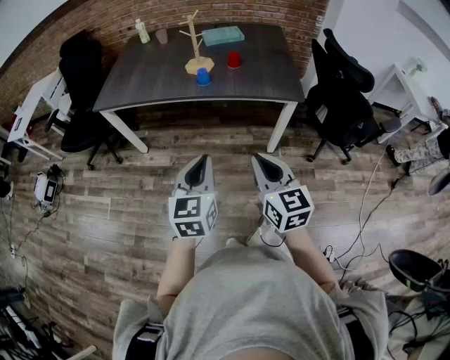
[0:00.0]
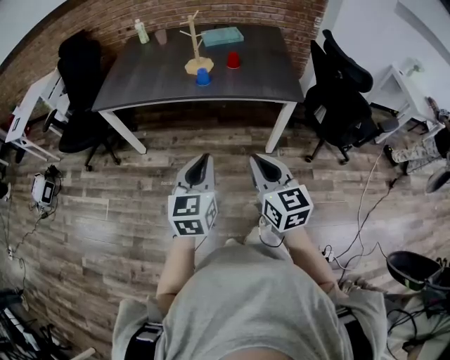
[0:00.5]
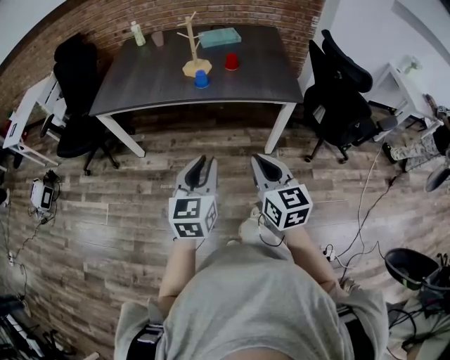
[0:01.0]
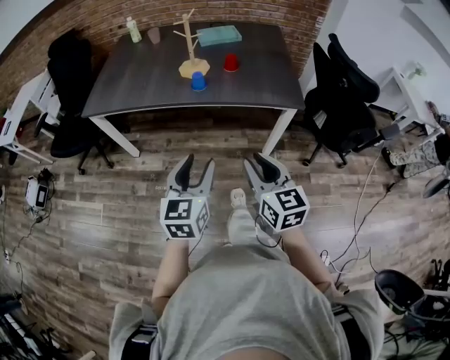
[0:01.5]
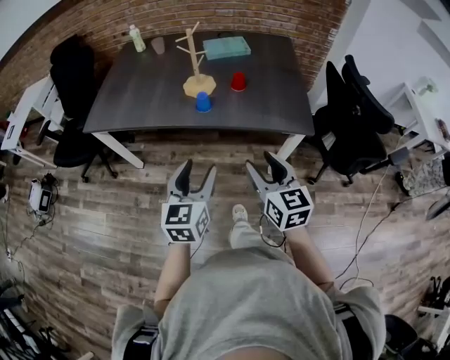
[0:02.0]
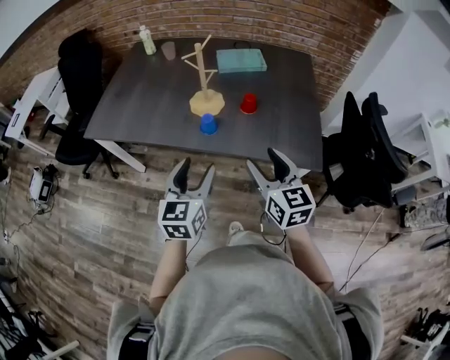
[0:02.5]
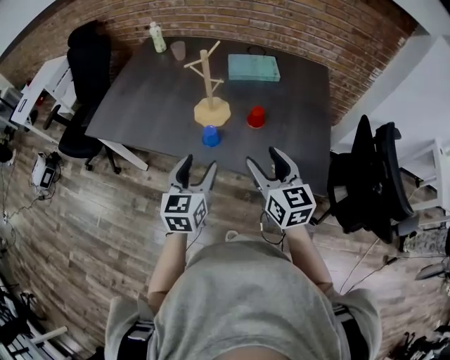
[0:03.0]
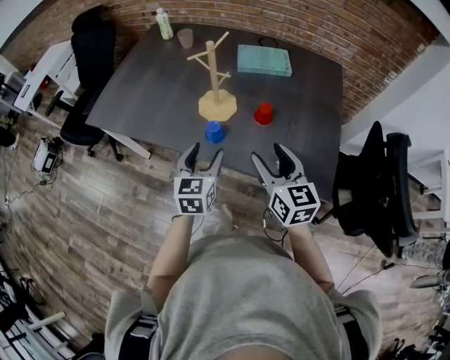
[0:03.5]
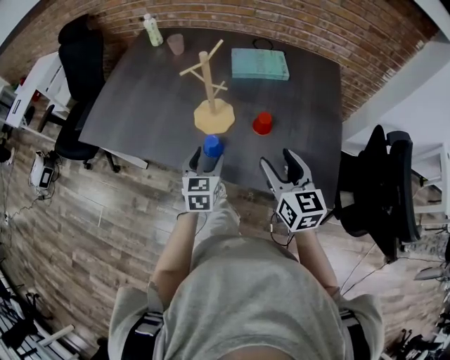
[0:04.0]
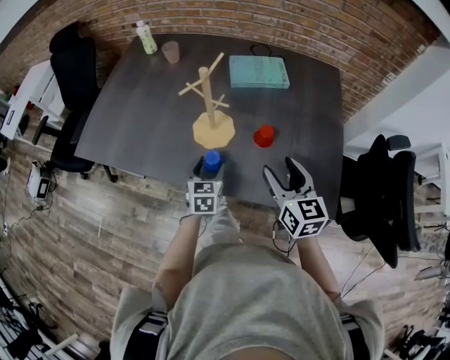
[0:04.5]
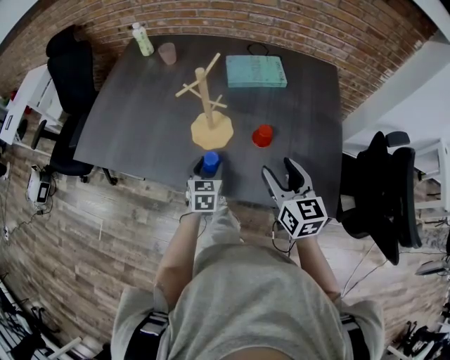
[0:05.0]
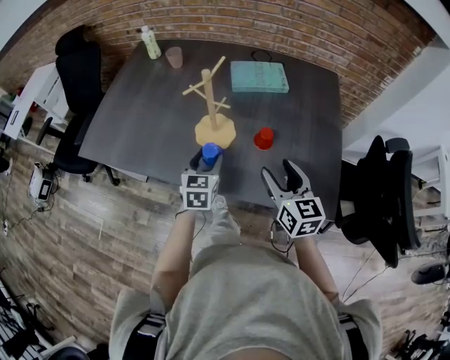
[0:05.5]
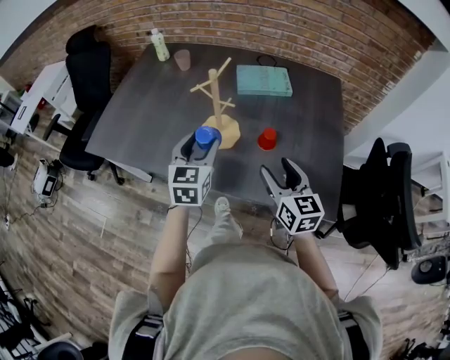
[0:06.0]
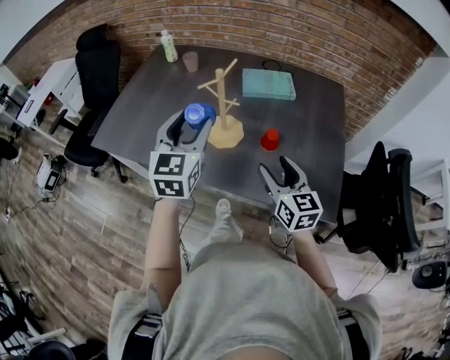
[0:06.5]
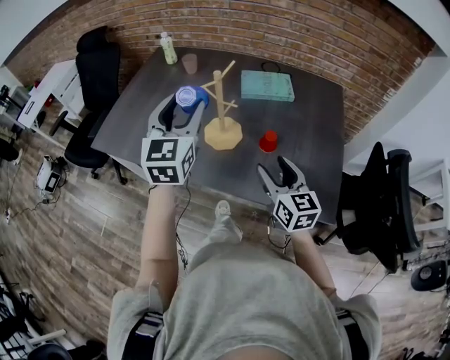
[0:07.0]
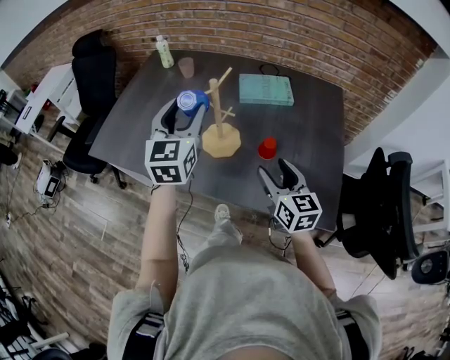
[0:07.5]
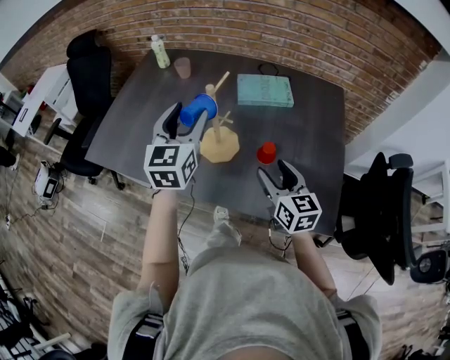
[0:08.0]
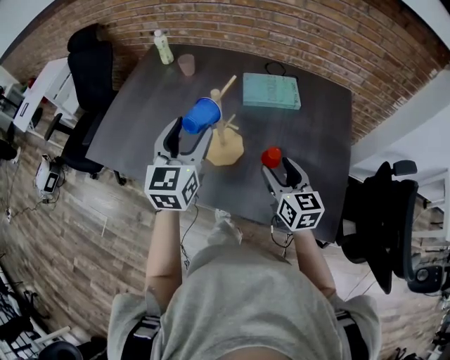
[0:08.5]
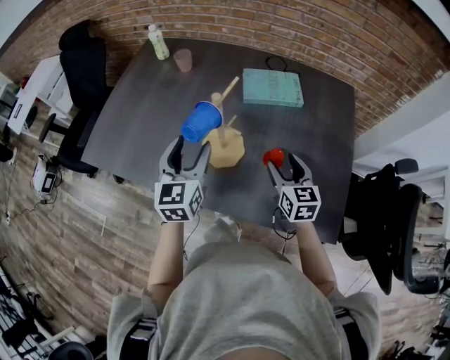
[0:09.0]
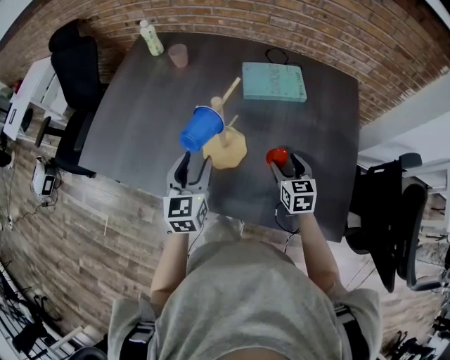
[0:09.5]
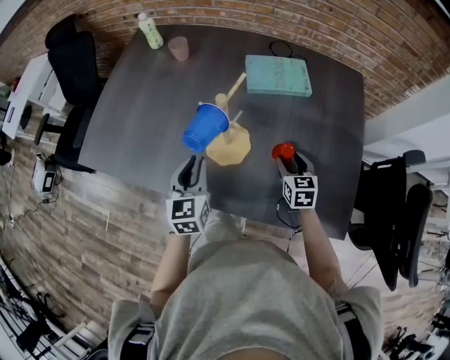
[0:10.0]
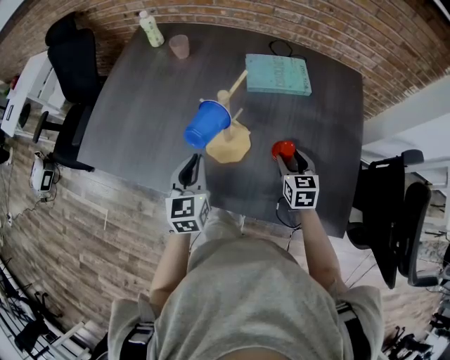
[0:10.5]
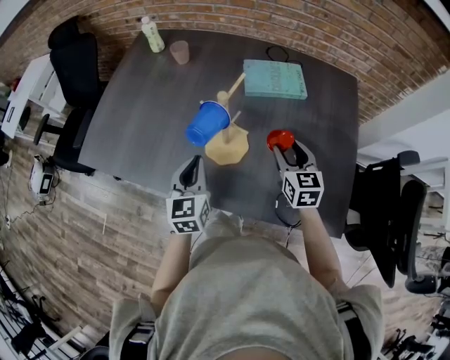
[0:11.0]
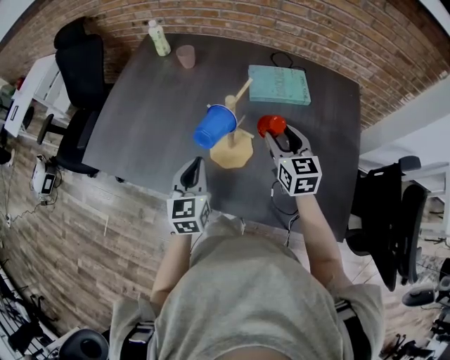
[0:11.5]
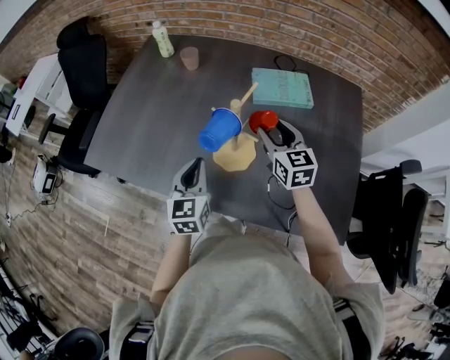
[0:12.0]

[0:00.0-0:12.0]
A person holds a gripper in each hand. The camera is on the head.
0:00.0 to 0:02.0: The grippers both shift forward by approximately 20 cm. The right gripper opens, while the left gripper opens up.
0:02.0 to 0:04.0: The right gripper moves forward, some 30 cm; the left gripper heads forward and downward, covering some 35 cm.
0:04.0 to 0:06.0: The left gripper travels upward by about 10 cm.
0:06.0 to 0:08.0: The left gripper heads upward and forward, covering roughly 15 cm.
0:08.0 to 0:10.0: The left gripper goes about 20 cm downward, and closes its fingers. The right gripper is displaced downward and forward by about 20 cm, and swivels about 30 degrees.
0:10.0 to 0:12.0: The right gripper is displaced upward, to the left and forward by about 20 cm, and swivels about 20 degrees.

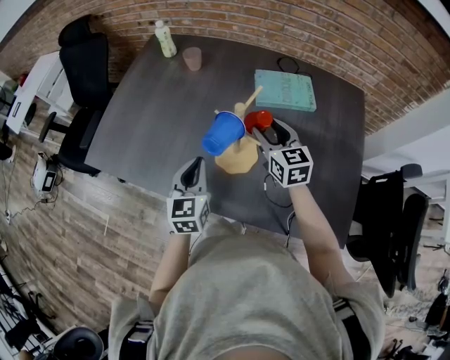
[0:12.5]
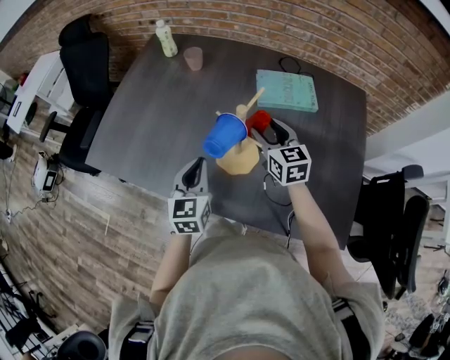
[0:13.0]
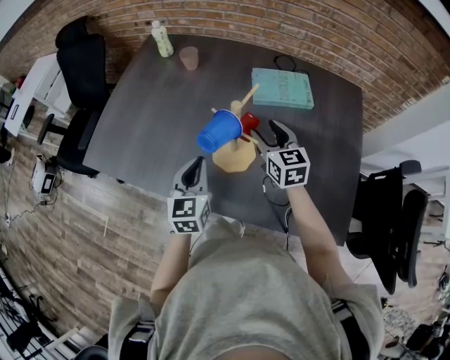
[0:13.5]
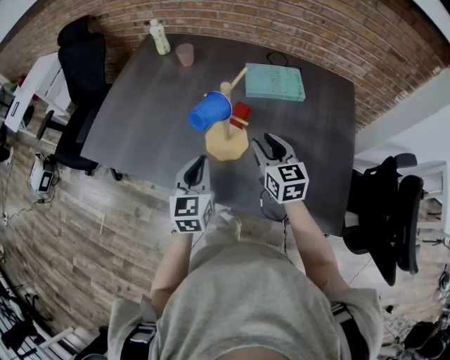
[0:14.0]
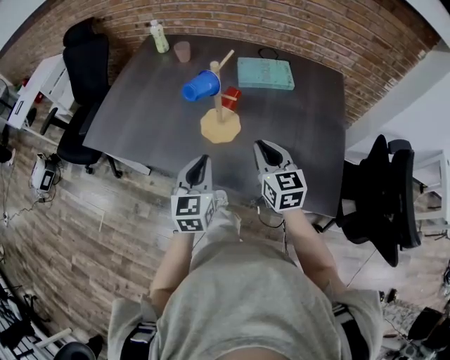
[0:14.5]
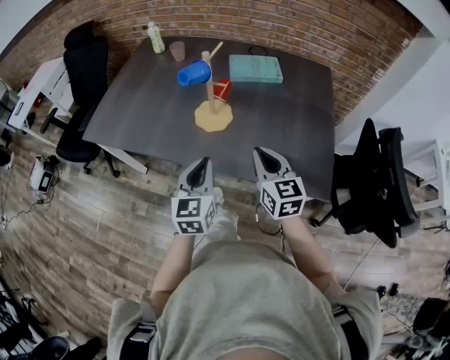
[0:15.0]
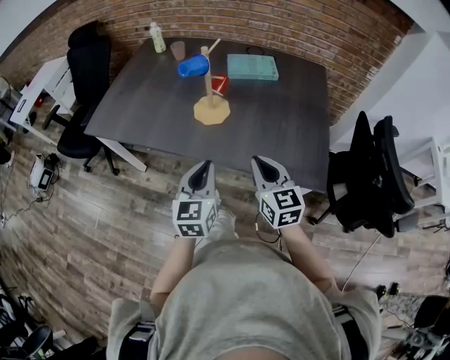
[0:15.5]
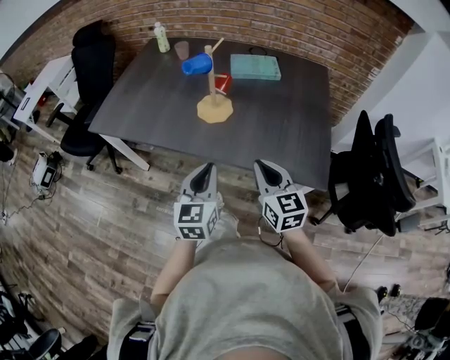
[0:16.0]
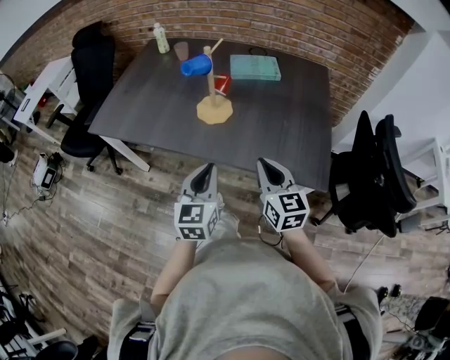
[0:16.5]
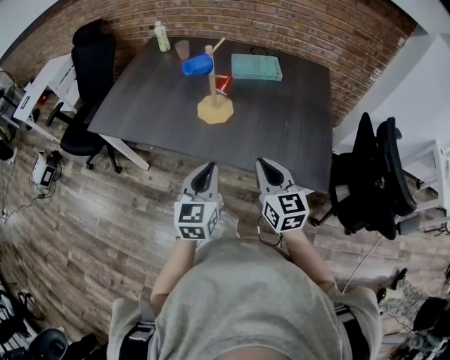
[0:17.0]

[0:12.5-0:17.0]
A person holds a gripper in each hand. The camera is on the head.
0:12.5 to 0:14.5: The two grippers go some 15 cm backward. The right gripper closes.
0:14.5 to 0:17.0: Both grippers travel together backward, roughly 15 cm.

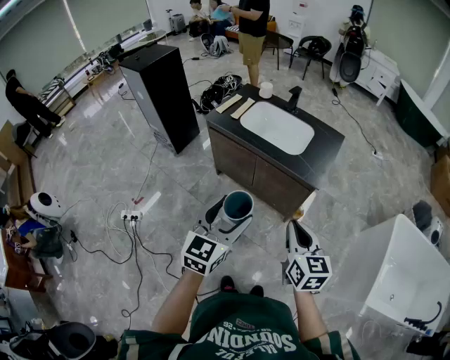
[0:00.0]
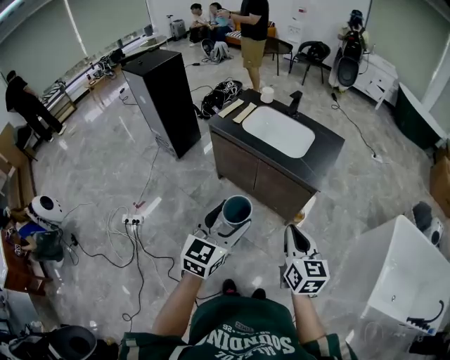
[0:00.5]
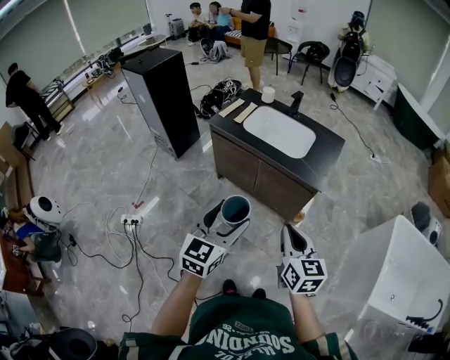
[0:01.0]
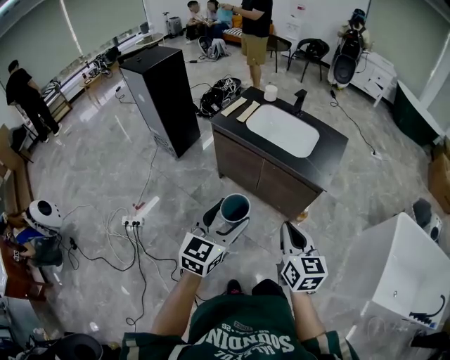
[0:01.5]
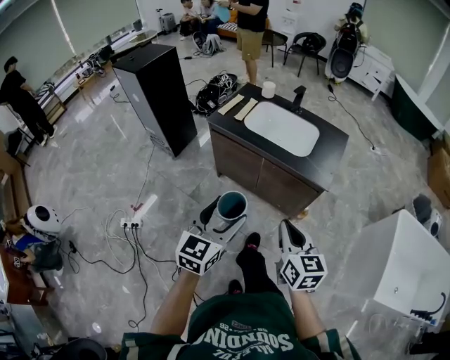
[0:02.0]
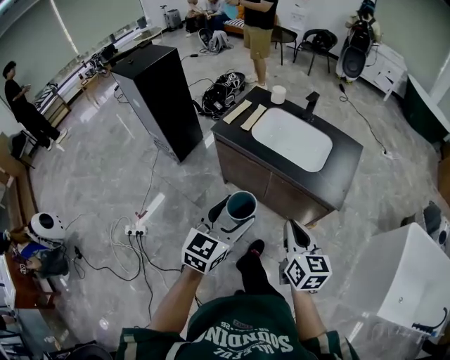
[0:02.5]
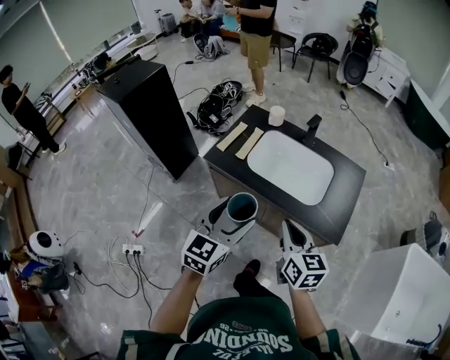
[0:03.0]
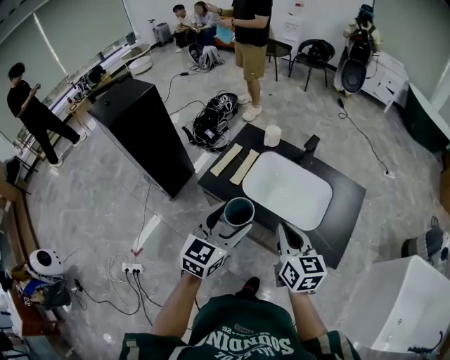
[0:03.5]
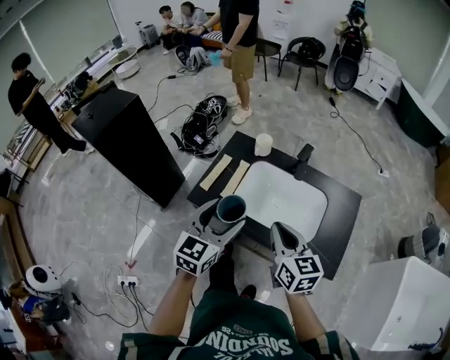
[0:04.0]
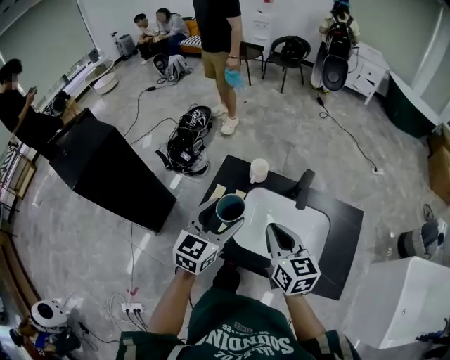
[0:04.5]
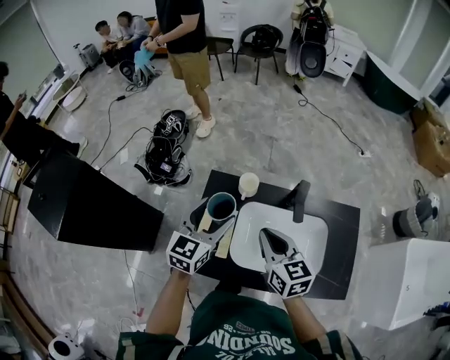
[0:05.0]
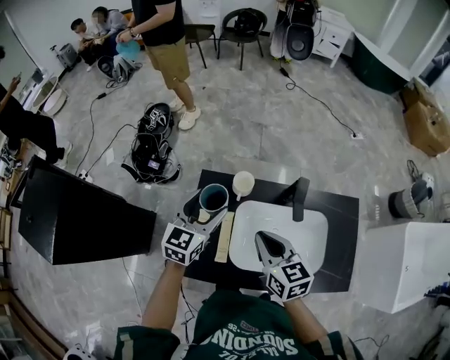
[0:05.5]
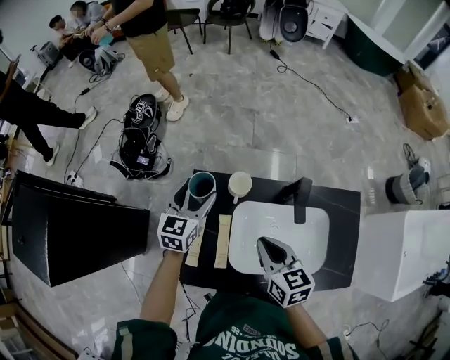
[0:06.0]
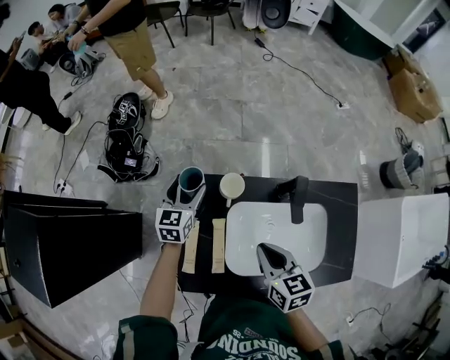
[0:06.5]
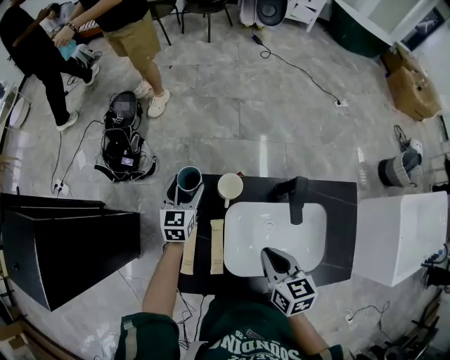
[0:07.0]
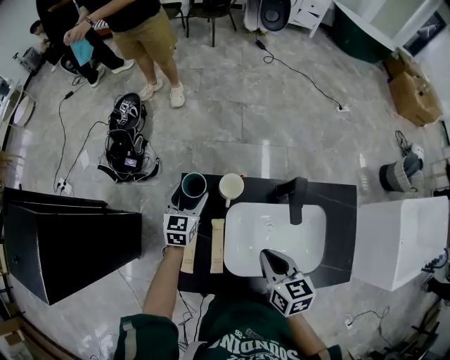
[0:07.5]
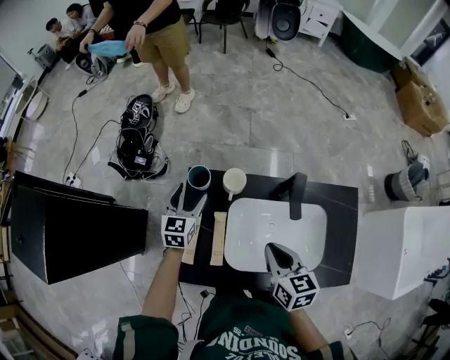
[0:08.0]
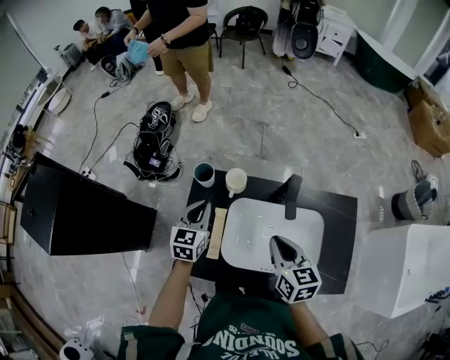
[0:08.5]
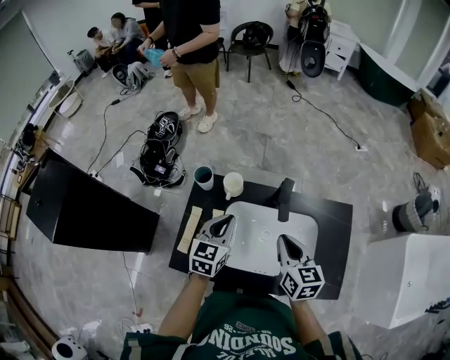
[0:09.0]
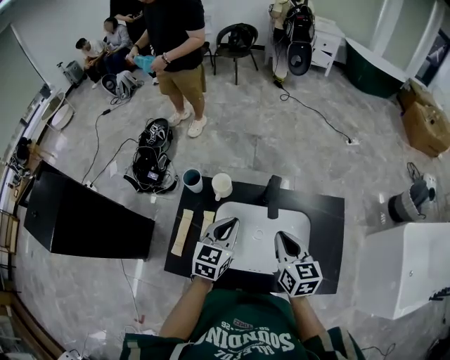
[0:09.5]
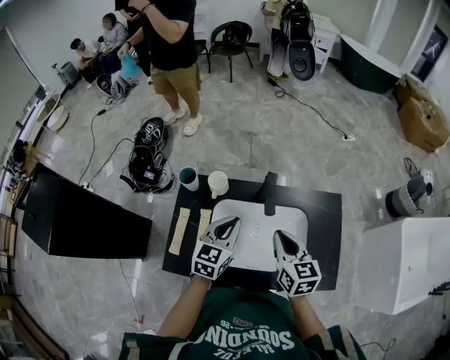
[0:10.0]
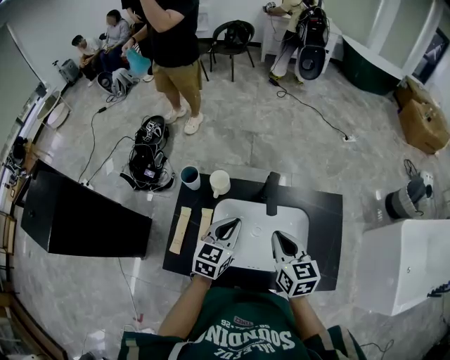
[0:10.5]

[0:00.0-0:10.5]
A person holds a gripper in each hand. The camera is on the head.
0:00.0 to 0:02.0: Both grippers travel together to the left, roughly 10 cm.
0:02.0 to 0:04.0: The two grippers travel together, forward, approximately 50 cm.
0:04.0 to 0:06.5: The right gripper moves forward and downward, about 30 cm, and changes its angle by about 30 degrees. The left gripper goes about 60 cm forward and downward.
0:06.5 to 0:08.5: The right gripper is displaced to the right by some 5 cm; the left gripper heads backward and upward, covering approximately 15 cm, and closes.
0:08.5 to 0:10.5: The left gripper is displaced to the right by approximately 20 cm. Meanwhile the right gripper shifts roughly 10 cm to the right.
